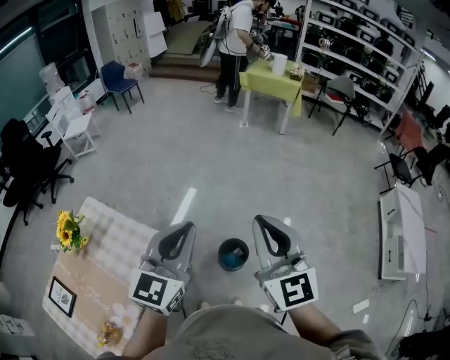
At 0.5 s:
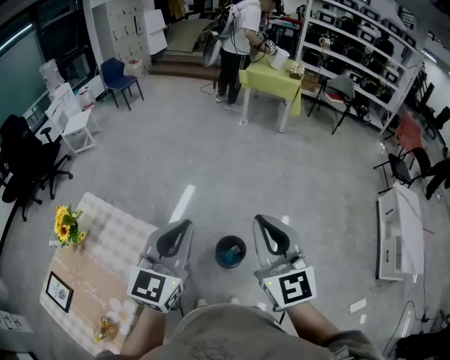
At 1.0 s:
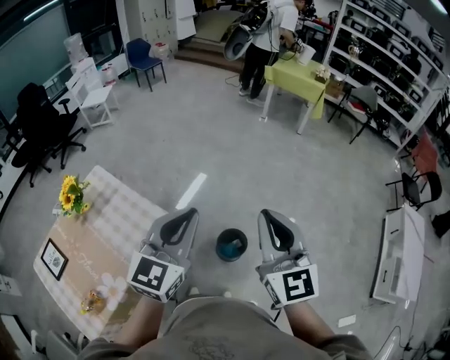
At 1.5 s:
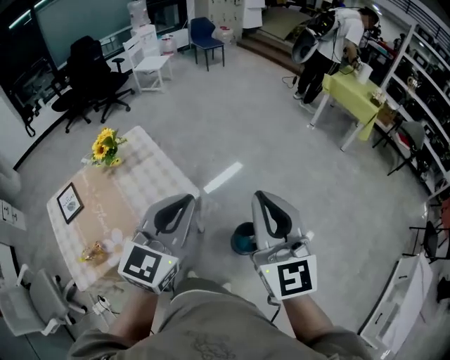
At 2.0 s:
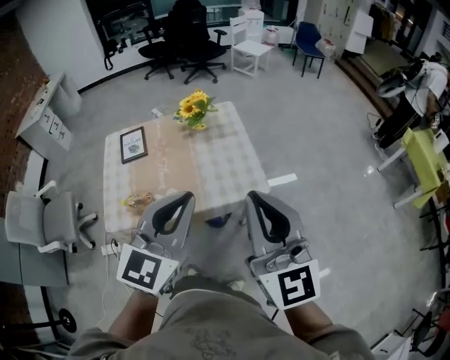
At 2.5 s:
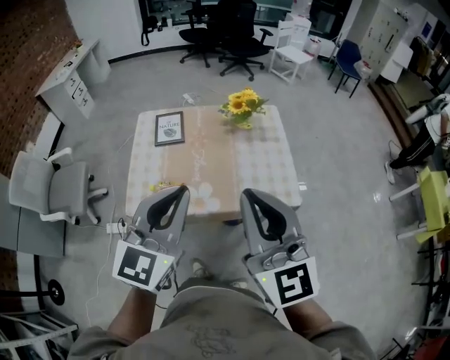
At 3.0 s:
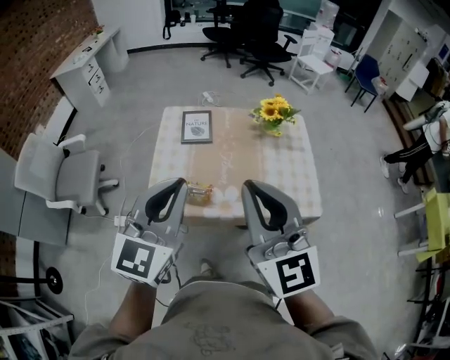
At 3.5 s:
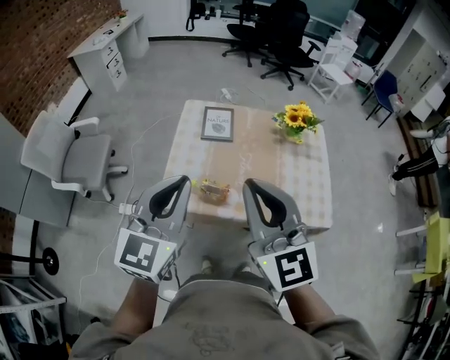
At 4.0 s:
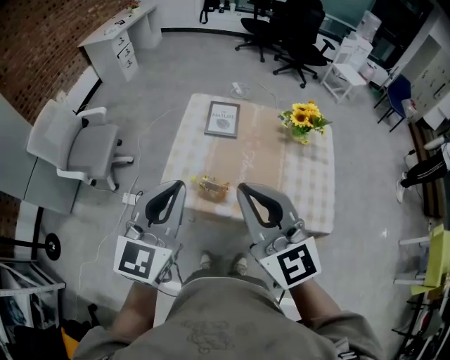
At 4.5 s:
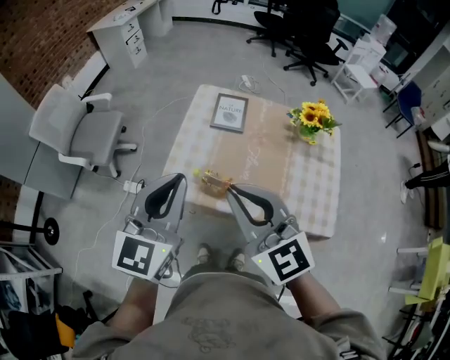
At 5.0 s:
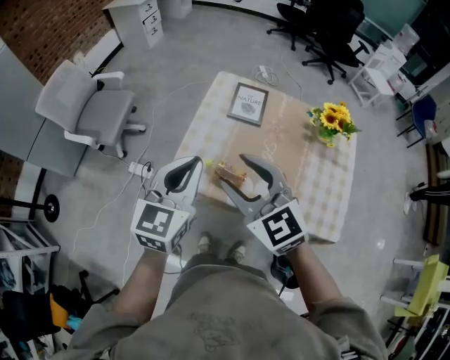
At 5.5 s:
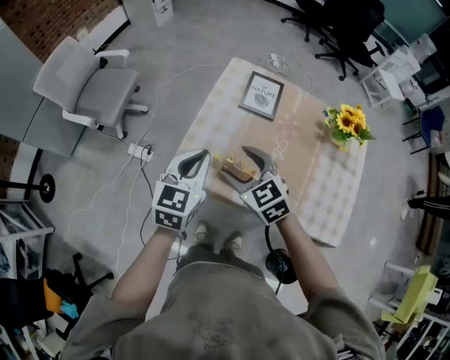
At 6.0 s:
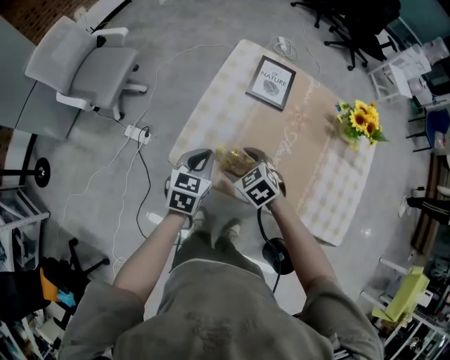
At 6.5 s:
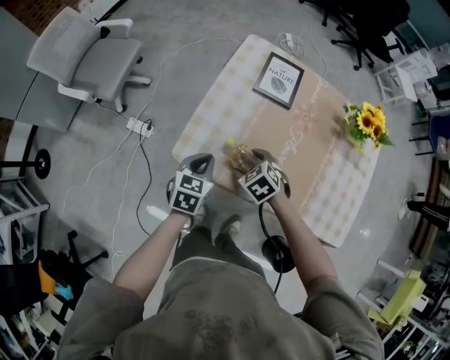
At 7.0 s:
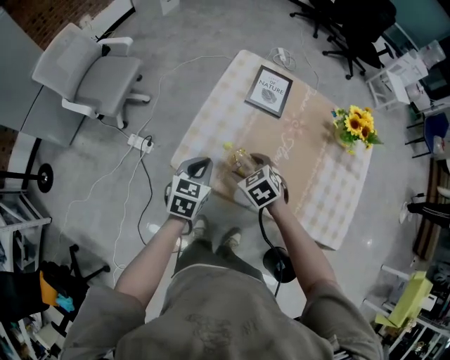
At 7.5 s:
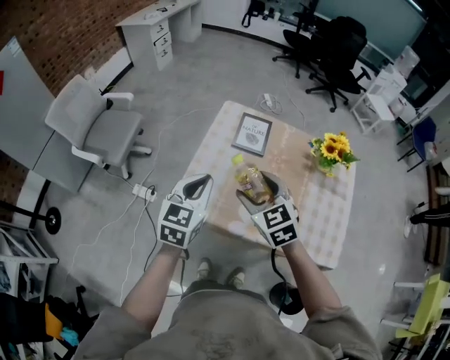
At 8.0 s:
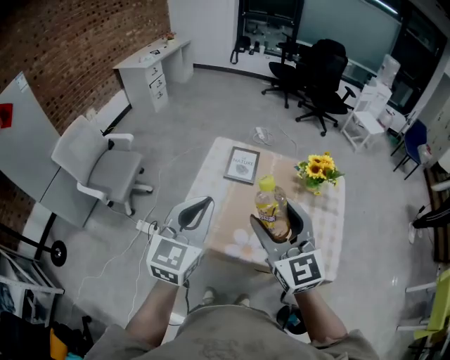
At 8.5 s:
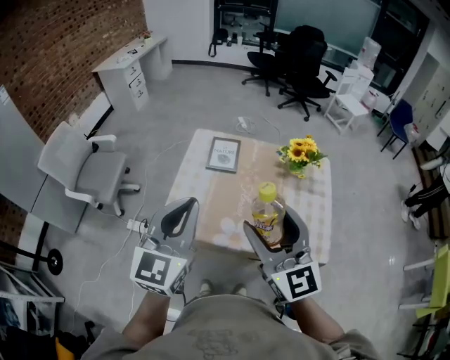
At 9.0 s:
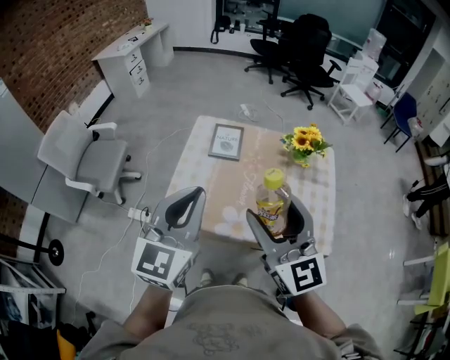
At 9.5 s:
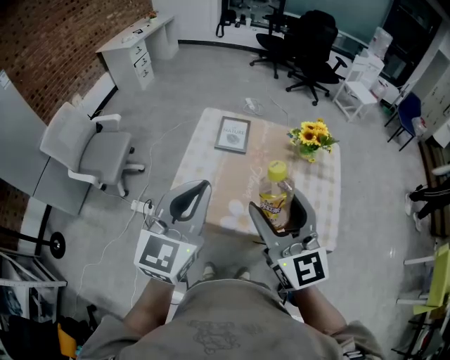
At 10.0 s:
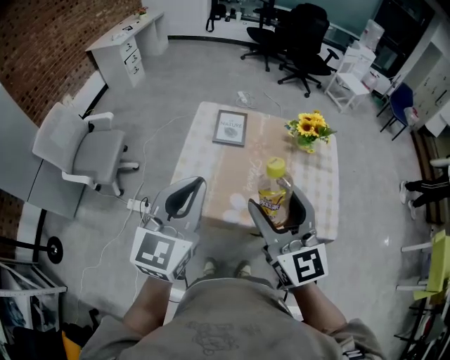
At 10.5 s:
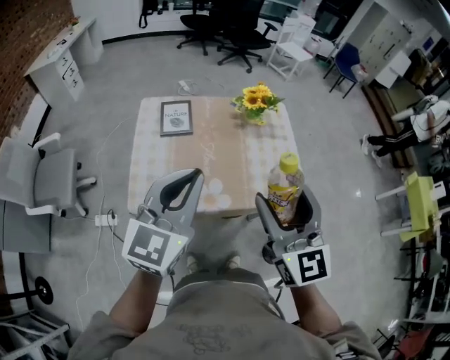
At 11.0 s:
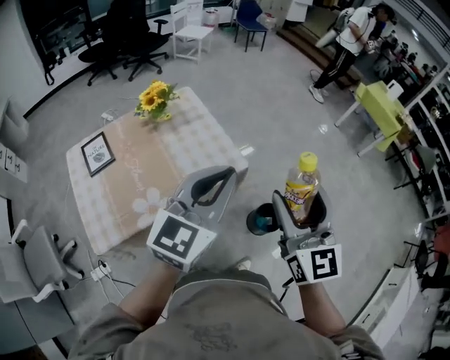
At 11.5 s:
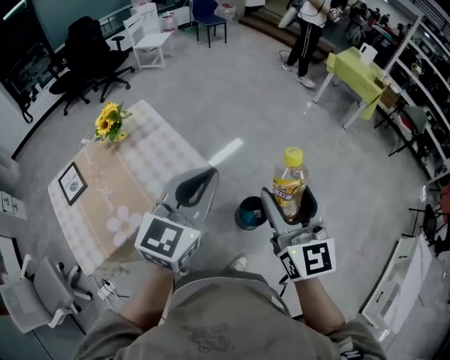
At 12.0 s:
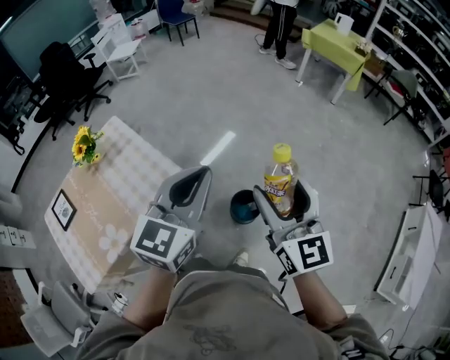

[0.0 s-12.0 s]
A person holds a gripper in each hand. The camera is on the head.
0.0 to 2.0 s: The left gripper shifts by approximately 25 cm, and swivels approximately 50 degrees. The right gripper shifts by some 25 cm, and rotates roughly 60 degrees.
2.0 to 4.0 s: The right gripper moves about 35 cm, and rotates roughly 40 degrees, while the left gripper ends up roughly 35 cm from where it was, and swivels some 30 degrees.
4.0 to 6.0 s: The two grippers go some 40 cm downward. The right gripper angles its fingers downward, by approximately 60 degrees, and opens, while the left gripper tilts its fingers about 30 degrees downward.
6.0 to 8.0 s: The grippers both shift upward by approximately 35 cm. The right gripper angles its fingers upward, by roughly 60 degrees. The left gripper rotates about 30 degrees.
8.0 to 10.0 s: The right gripper moves backward, approximately 5 cm.
10.0 to 12.0 s: Both grippers are carried about 60 cm. The left gripper changes its angle by some 70 degrees, while the right gripper changes its angle by some 70 degrees.

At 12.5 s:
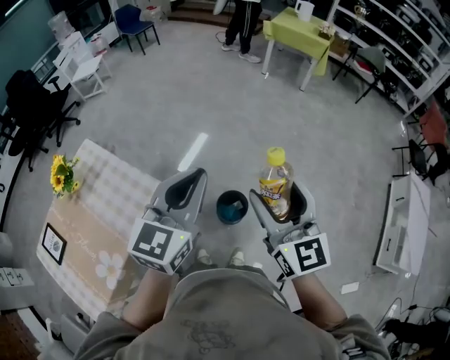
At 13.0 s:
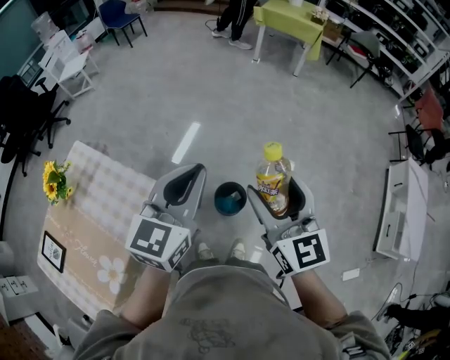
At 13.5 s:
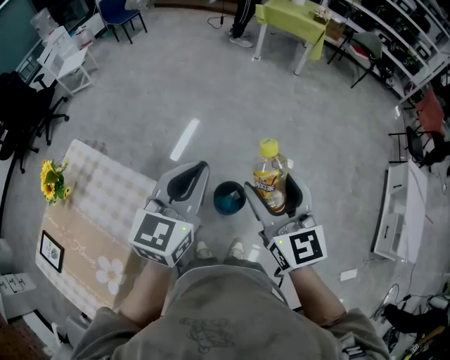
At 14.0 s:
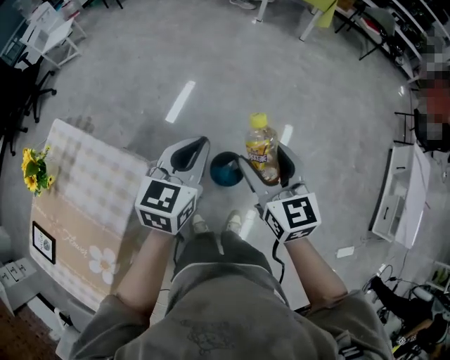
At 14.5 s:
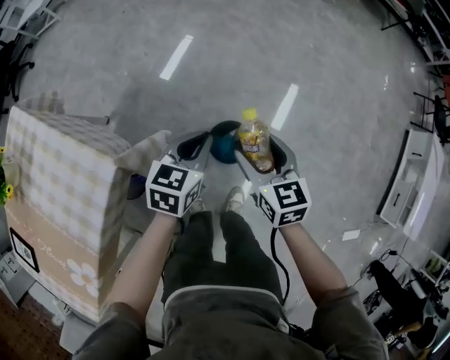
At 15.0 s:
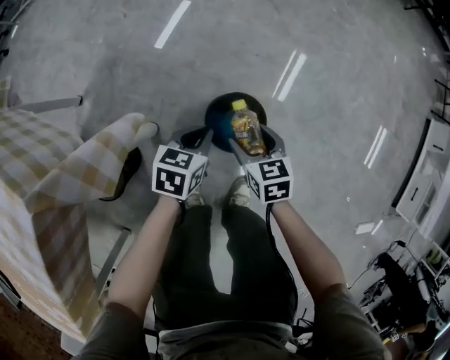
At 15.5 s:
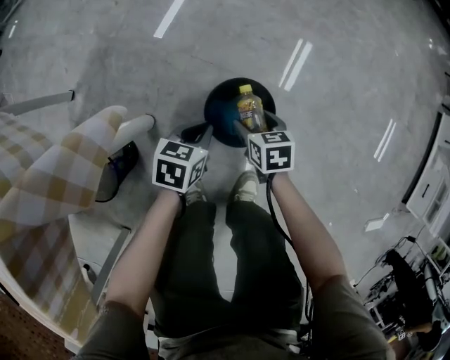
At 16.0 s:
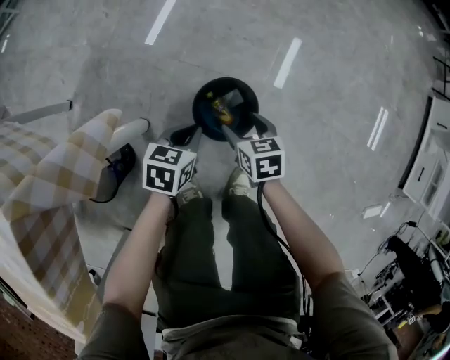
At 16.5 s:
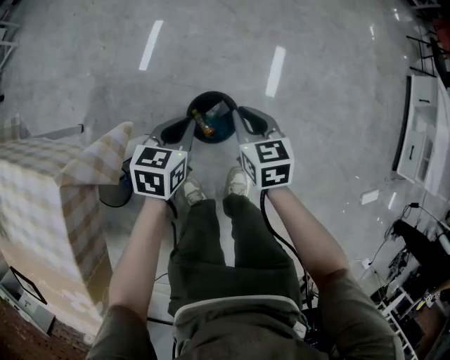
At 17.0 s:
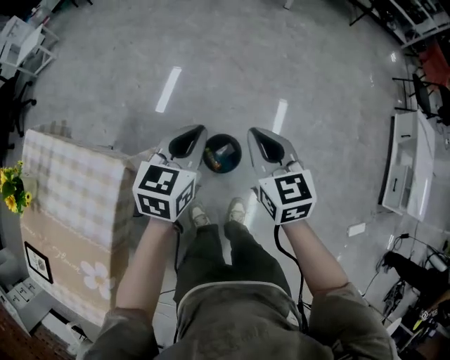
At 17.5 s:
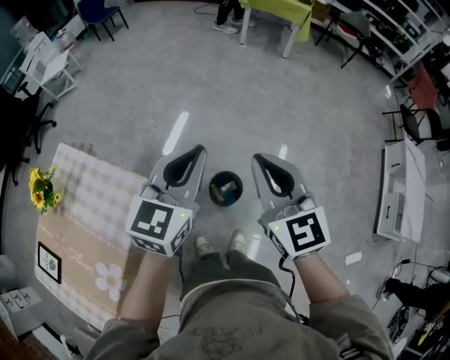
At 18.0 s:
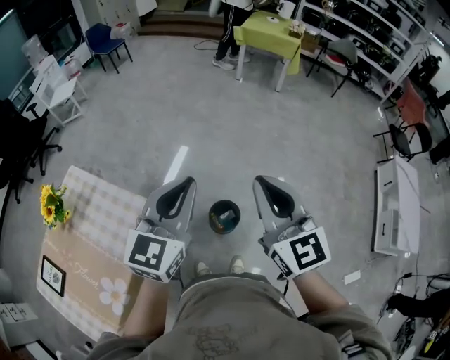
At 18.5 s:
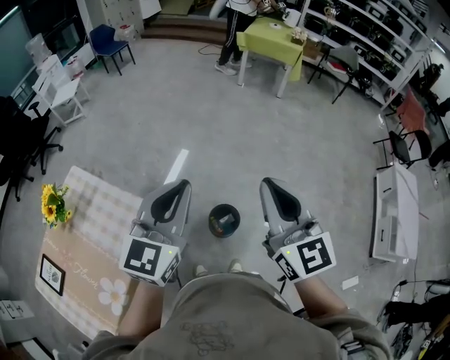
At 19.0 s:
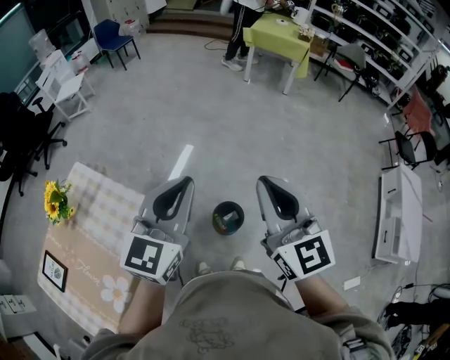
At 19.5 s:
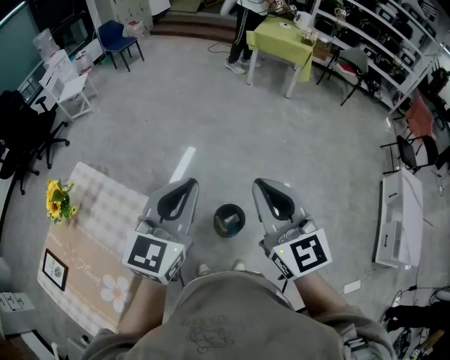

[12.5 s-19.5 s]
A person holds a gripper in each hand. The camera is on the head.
12.5 to 14.5 s: The grippers both shift downward by some 40 cm. The left gripper swivels approximately 40 degrees. The right gripper angles its fingers downward, by roughly 30 degrees.
14.5 to 16.0 s: The grippers both shift downward by about 35 cm. The right gripper rotates about 20 degrees.
16.0 to 17.5 s: Both grippers move upward, approximately 80 cm. The left gripper points its fingers about 40 degrees further upward; the right gripper tips its fingers upward by approximately 40 degrees, and closes up.
17.5 to 19.5 s: The left gripper travels upward and backward by approximately 10 cm; the right gripper heads upward, covering roughly 10 cm.

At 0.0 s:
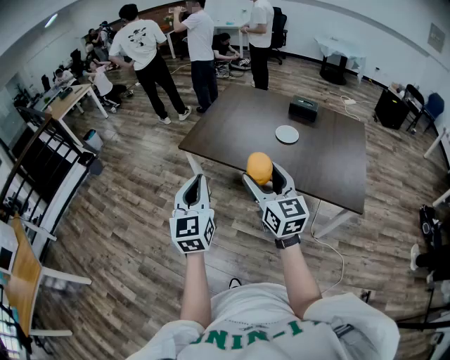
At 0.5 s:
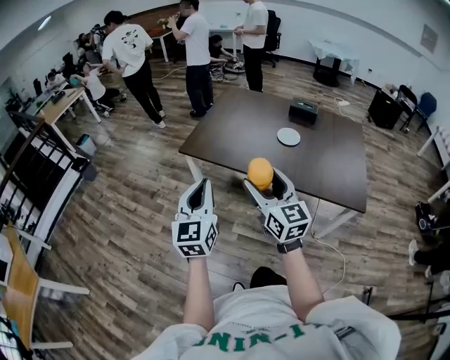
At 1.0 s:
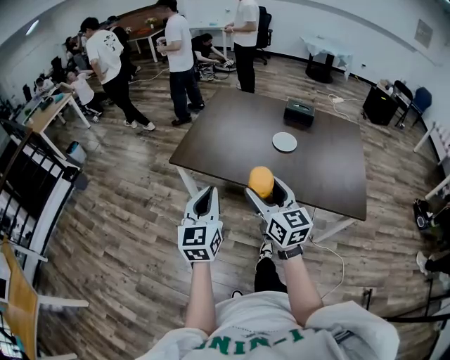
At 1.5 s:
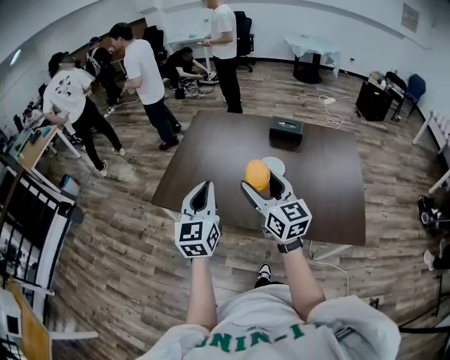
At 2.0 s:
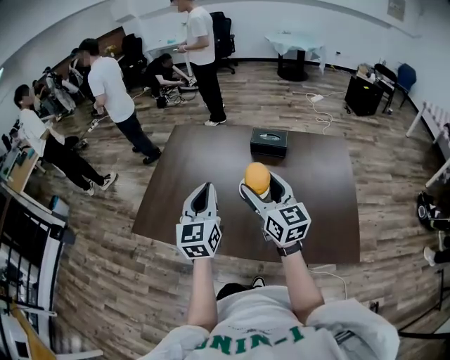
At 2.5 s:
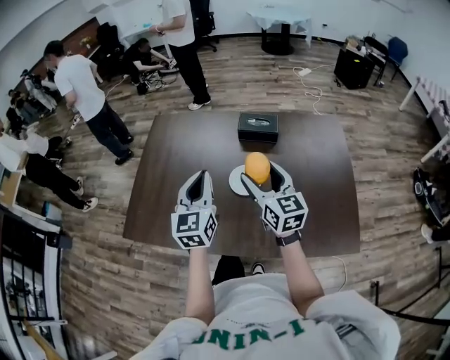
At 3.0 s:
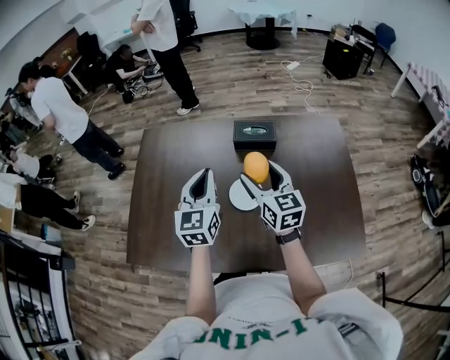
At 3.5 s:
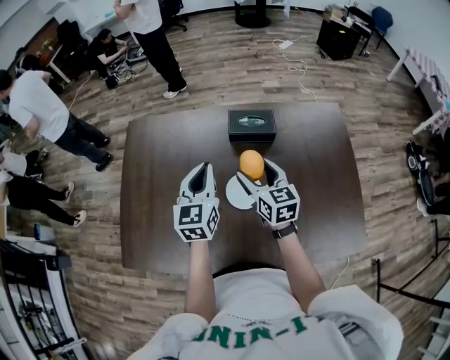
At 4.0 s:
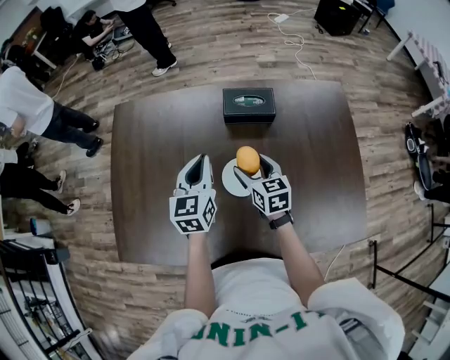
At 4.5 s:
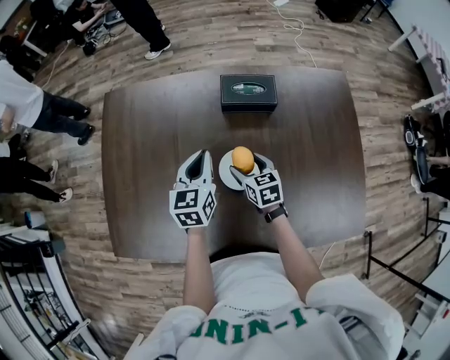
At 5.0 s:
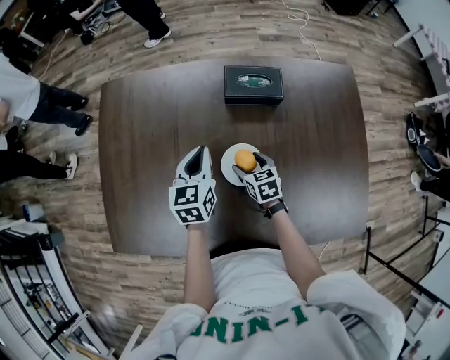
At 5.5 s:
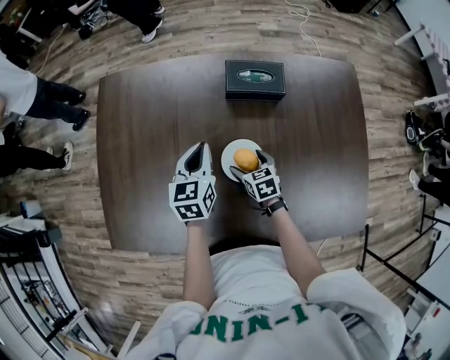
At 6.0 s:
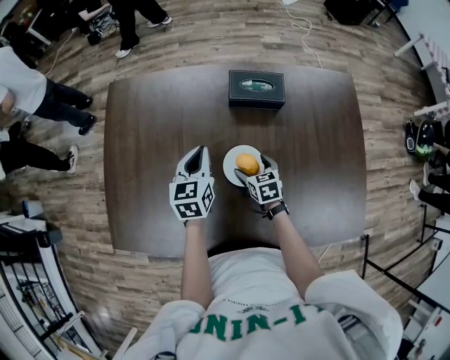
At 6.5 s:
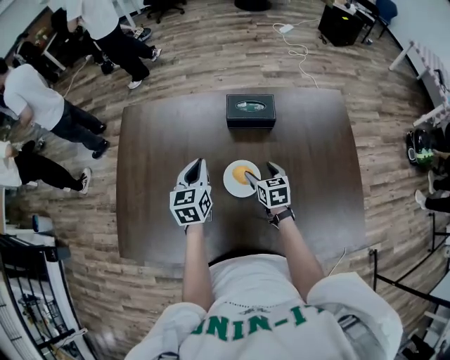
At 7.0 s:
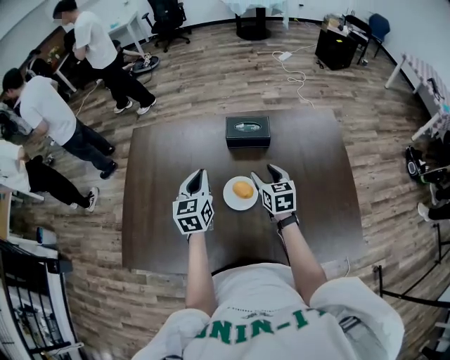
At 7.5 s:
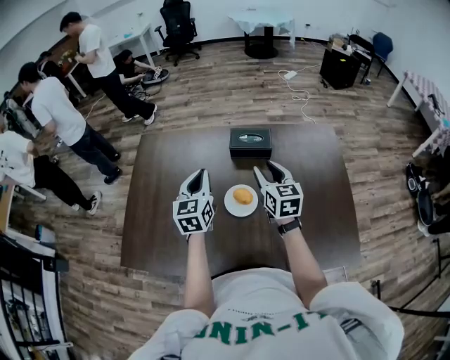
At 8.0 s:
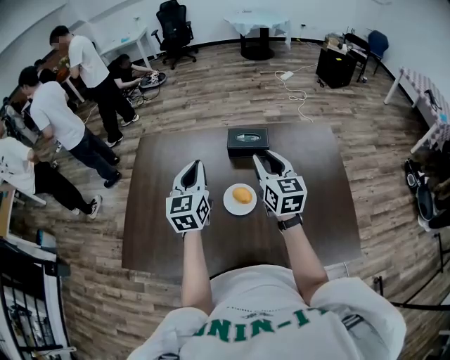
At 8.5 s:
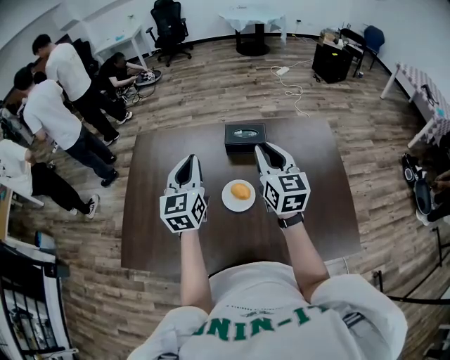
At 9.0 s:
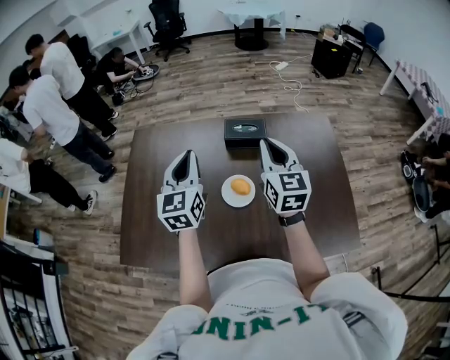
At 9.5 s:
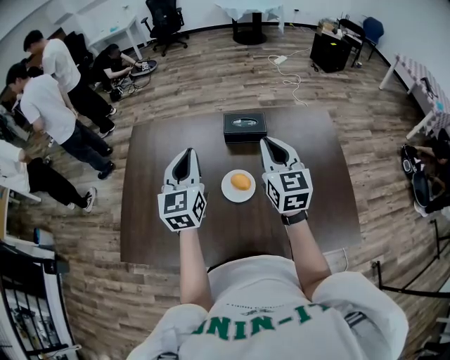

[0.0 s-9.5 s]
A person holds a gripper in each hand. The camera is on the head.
0.0 to 2.0 s: The pair of grippers is taken forward and to the right, roughly 50 cm.
2.0 to 4.0 s: The right gripper heads downward and forward, covering about 35 cm, and tilts its fingers about 30 degrees downward; the left gripper travels forward and downward by about 35 cm, and rotates about 20 degrees.
4.0 to 5.5 s: The left gripper goes about 10 cm downward. The right gripper travels downward by approximately 15 cm, and turns by some 20 degrees.
5.5 to 7.5 s: The left gripper is displaced upward and backward by some 20 cm; the right gripper heads upward, covering approximately 30 cm, angles its fingers upward, by about 30 degrees, and closes.
7.5 to 9.5 s: Both grippers travel together upward, approximately 10 cm. The right gripper closes.
